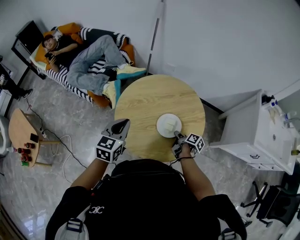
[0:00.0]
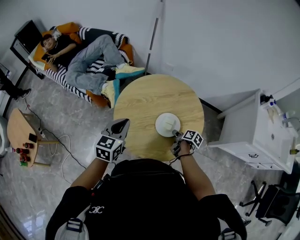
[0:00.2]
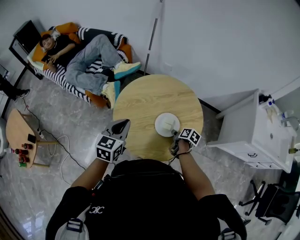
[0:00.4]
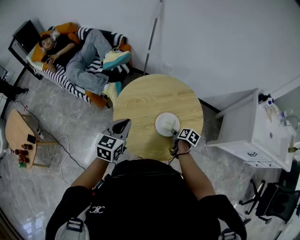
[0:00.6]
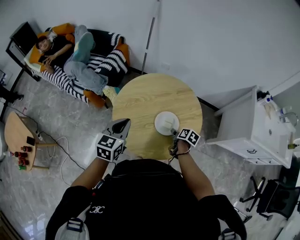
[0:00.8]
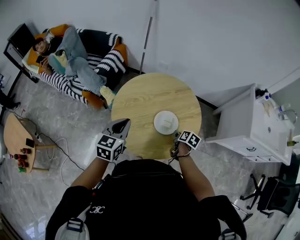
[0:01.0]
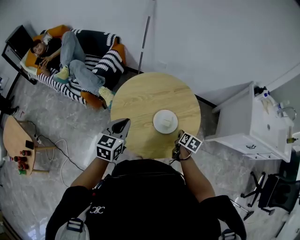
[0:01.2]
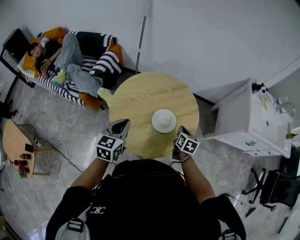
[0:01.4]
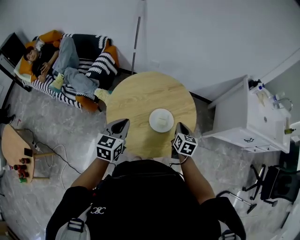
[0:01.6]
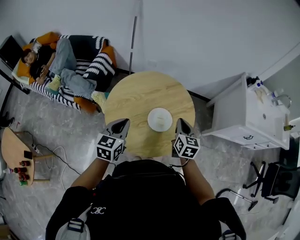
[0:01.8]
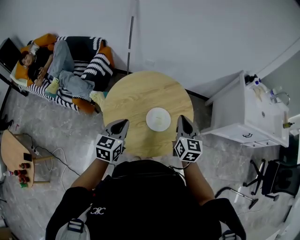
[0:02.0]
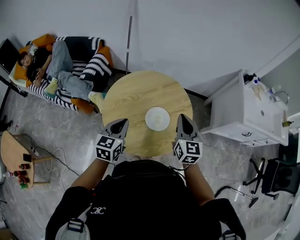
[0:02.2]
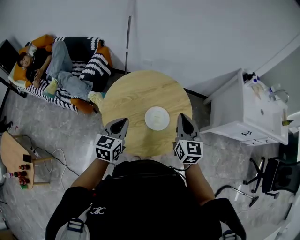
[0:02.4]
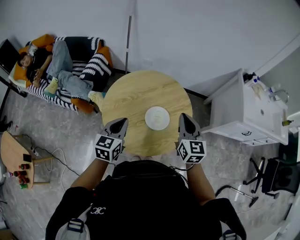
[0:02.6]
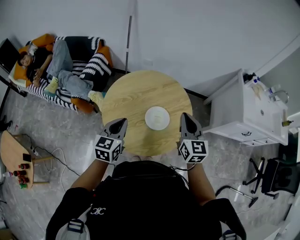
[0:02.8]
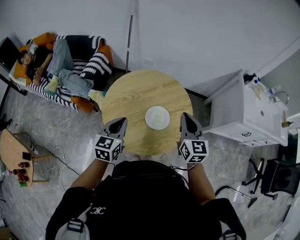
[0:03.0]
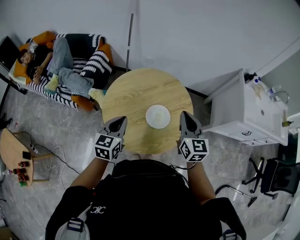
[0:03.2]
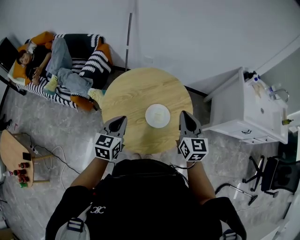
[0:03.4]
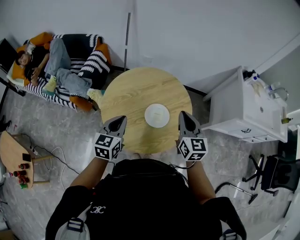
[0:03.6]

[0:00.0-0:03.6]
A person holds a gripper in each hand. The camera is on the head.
0.0 to 1.8 s: The right gripper moves upward, about 20 cm, twists about 60 degrees counterclockwise, seen from behind, and opens and closes again.
1.8 to 3.6 s: The right gripper is displaced upward by roughly 10 cm.

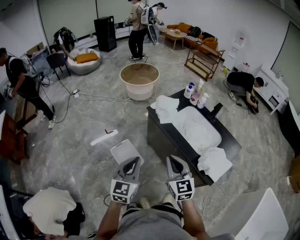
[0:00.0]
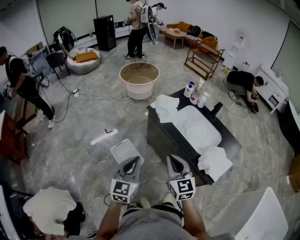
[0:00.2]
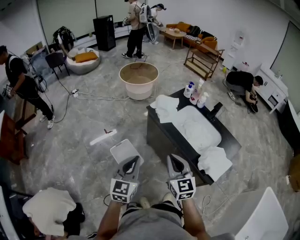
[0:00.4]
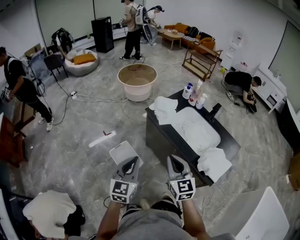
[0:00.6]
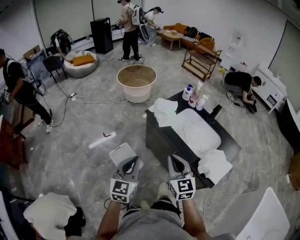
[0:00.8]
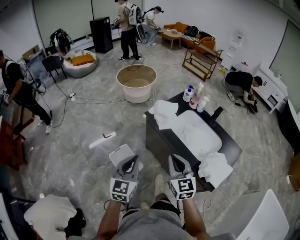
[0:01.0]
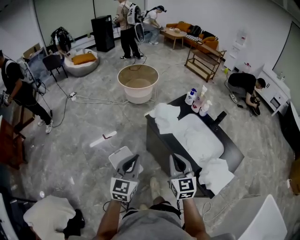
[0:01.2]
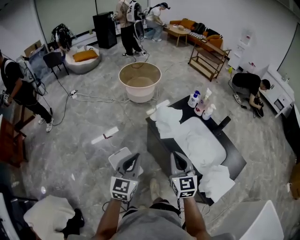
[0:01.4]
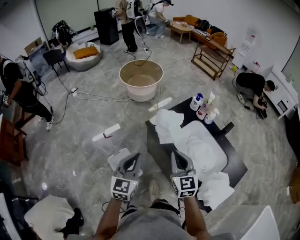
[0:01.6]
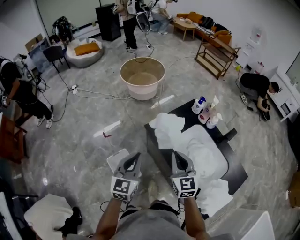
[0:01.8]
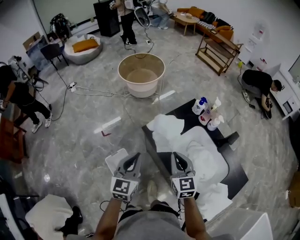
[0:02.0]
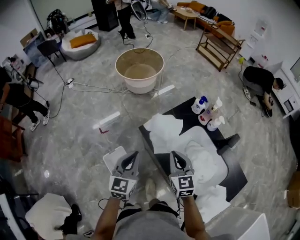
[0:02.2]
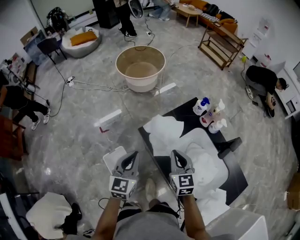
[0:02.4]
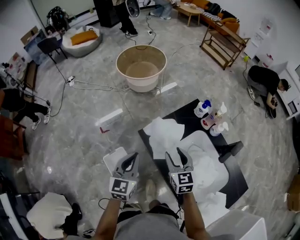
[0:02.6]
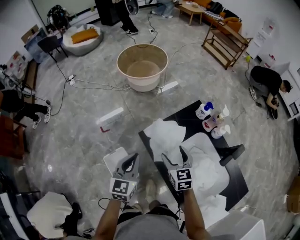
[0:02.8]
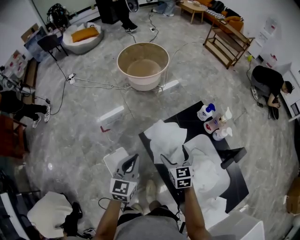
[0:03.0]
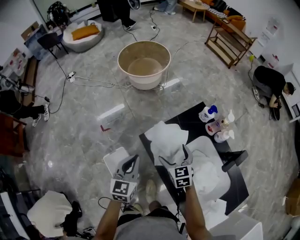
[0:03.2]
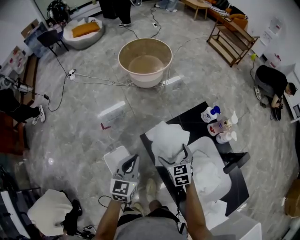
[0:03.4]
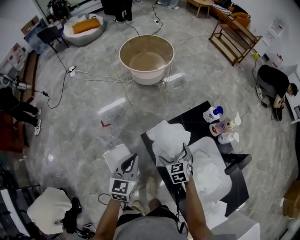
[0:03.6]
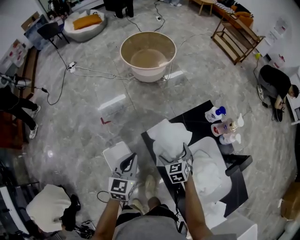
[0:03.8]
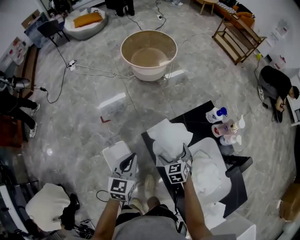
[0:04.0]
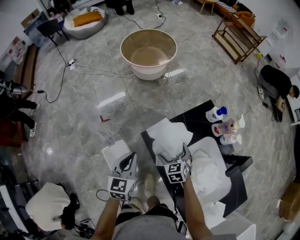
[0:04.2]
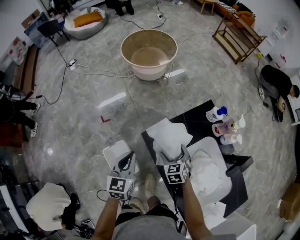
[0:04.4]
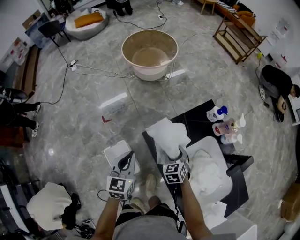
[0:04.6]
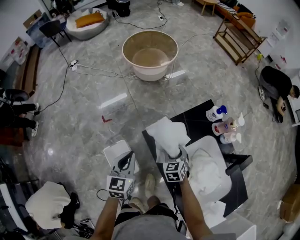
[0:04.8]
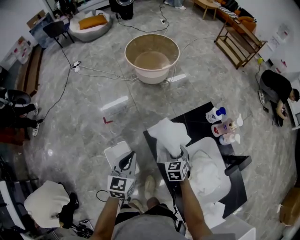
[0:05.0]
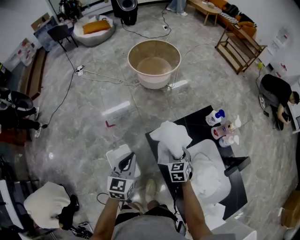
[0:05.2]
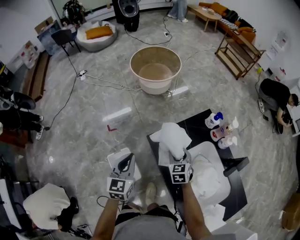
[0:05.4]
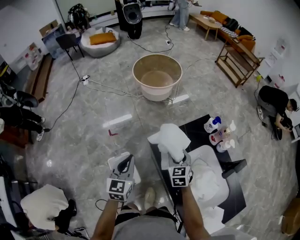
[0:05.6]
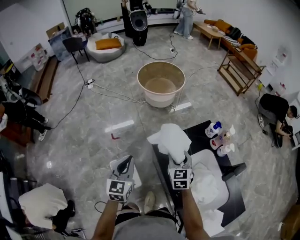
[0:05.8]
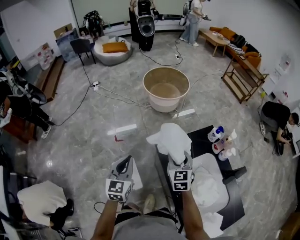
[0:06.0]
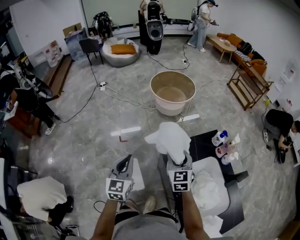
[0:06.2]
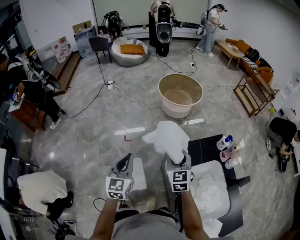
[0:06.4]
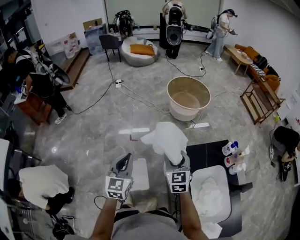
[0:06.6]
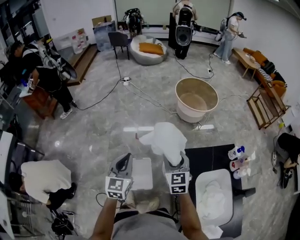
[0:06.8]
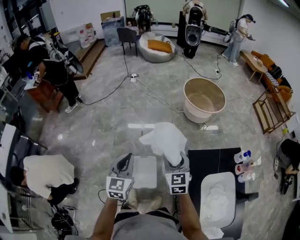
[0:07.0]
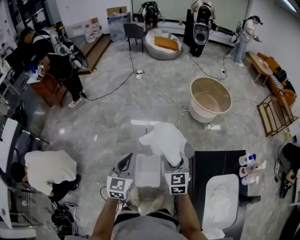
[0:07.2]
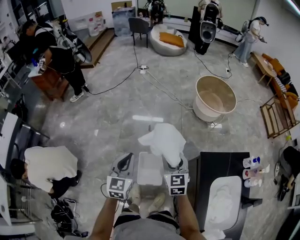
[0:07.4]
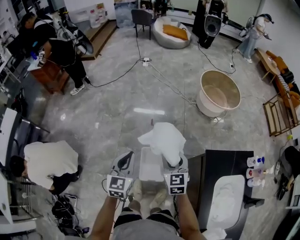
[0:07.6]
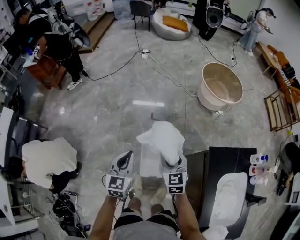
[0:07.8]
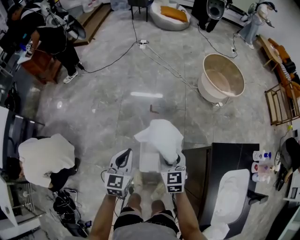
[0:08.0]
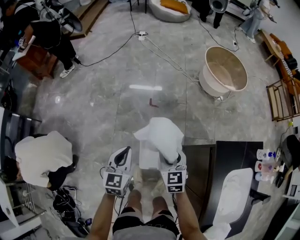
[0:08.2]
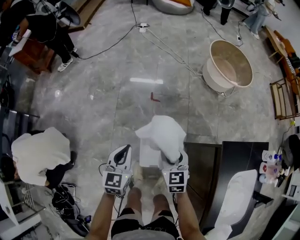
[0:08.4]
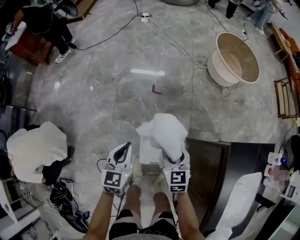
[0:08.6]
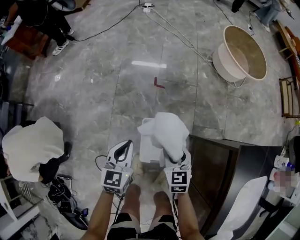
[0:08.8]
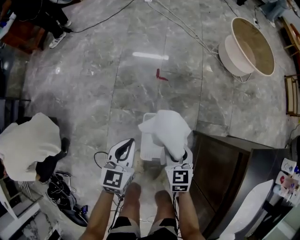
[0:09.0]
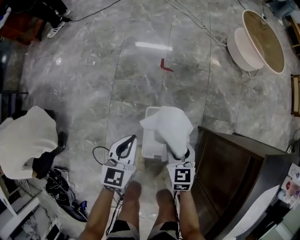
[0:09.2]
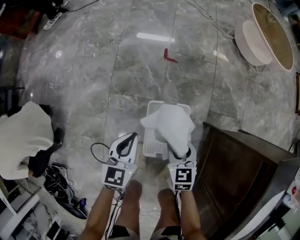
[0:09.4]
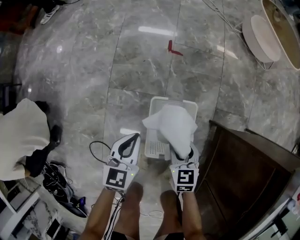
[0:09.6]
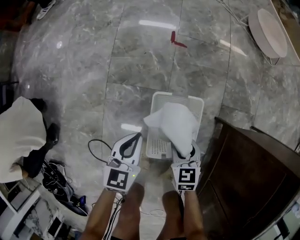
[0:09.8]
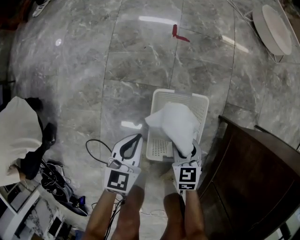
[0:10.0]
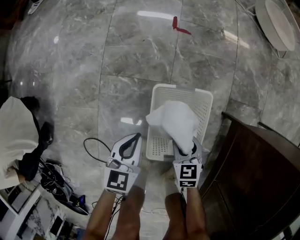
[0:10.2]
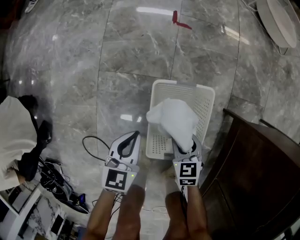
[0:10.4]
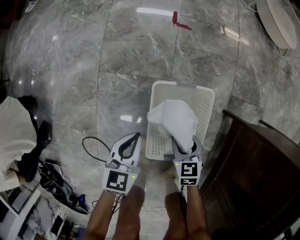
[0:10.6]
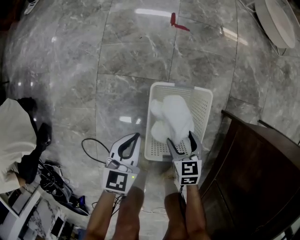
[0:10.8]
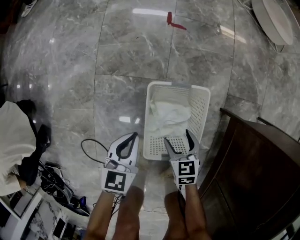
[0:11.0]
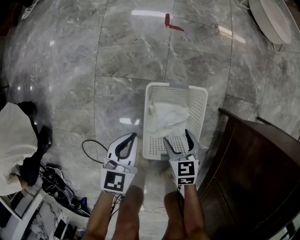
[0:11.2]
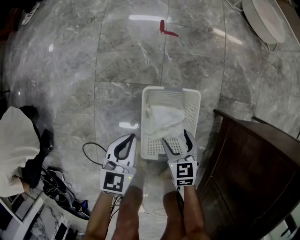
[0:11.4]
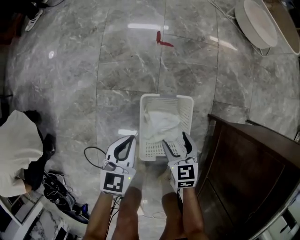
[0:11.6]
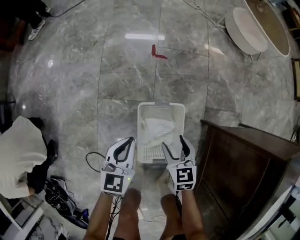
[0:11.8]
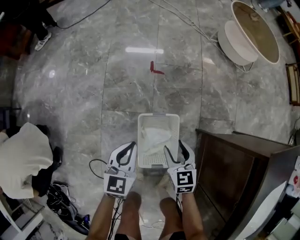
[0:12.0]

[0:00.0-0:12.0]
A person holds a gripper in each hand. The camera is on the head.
0.0 to 1.6 s: Both grippers travel together forward, about 25 cm.
1.6 to 3.0 s: Both grippers travel together forward and downward, approximately 25 cm. The right gripper turns by approximately 20 degrees, and opens.
3.0 to 4.4 s: The left gripper goes some 5 cm downward; the right gripper heads downward, covering about 10 cm.
4.4 to 6.0 s: The right gripper moves upward, some 20 cm, turns by approximately 20 degrees, and closes up; the left gripper travels upward, backward and to the left by some 15 cm.
6.0 to 7.6 s: The grippers both shift to the left by some 35 cm. The left gripper swivels approximately 20 degrees. Meanwhile the right gripper rotates some 30 degrees.
7.6 to 9.0 s: The two grippers go approximately 35 cm downward.
9.0 to 10.4 s: Both grippers travel together downward, roughly 35 cm.
10.4 to 12.0 s: Both grippers travel together upward, some 25 cm.

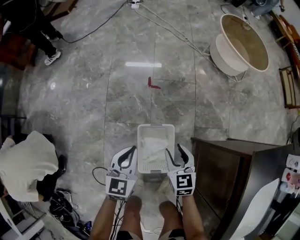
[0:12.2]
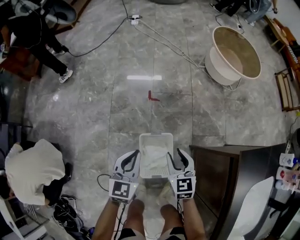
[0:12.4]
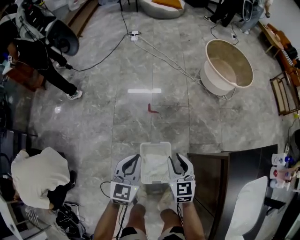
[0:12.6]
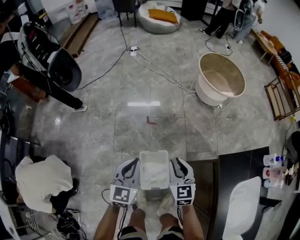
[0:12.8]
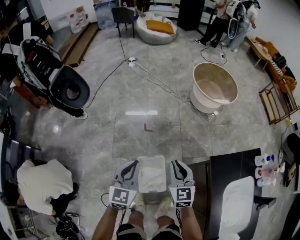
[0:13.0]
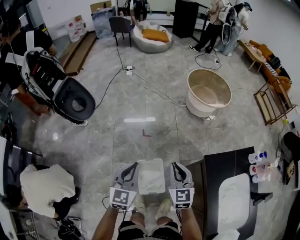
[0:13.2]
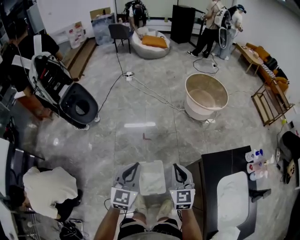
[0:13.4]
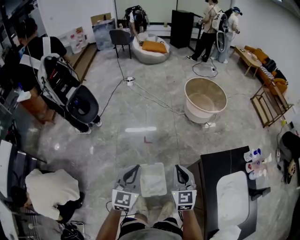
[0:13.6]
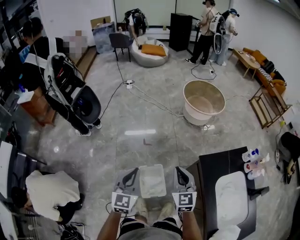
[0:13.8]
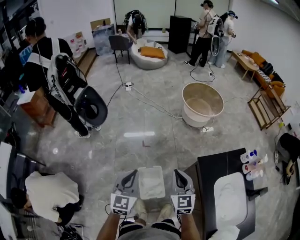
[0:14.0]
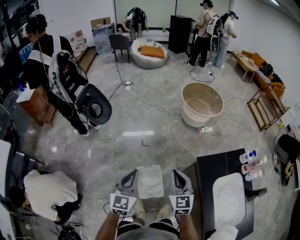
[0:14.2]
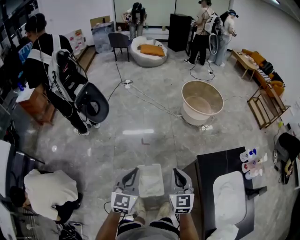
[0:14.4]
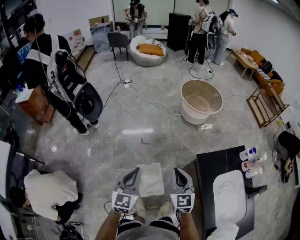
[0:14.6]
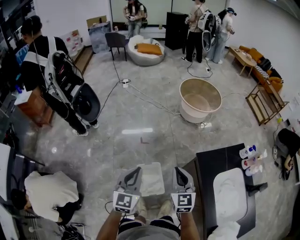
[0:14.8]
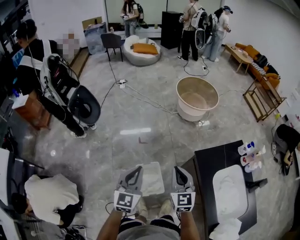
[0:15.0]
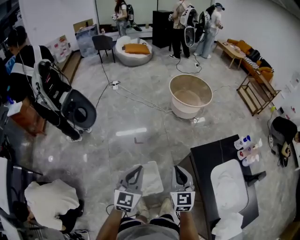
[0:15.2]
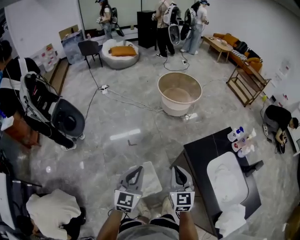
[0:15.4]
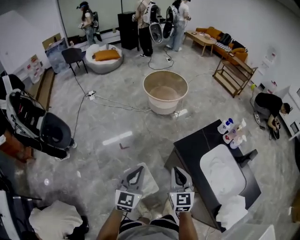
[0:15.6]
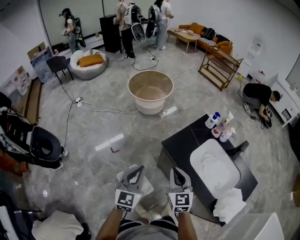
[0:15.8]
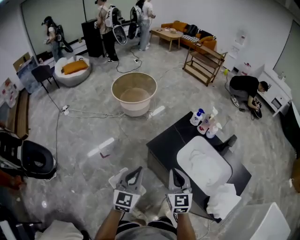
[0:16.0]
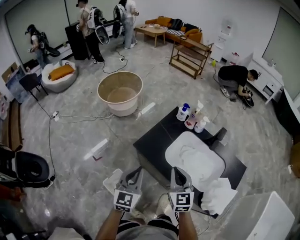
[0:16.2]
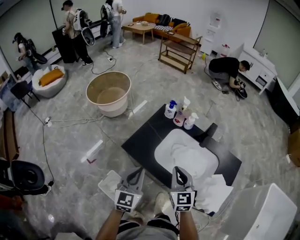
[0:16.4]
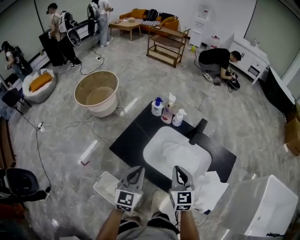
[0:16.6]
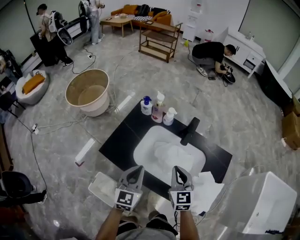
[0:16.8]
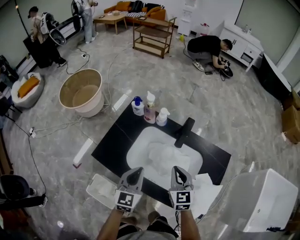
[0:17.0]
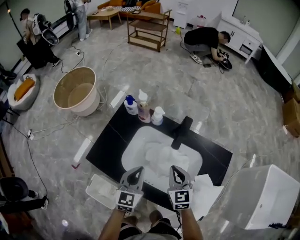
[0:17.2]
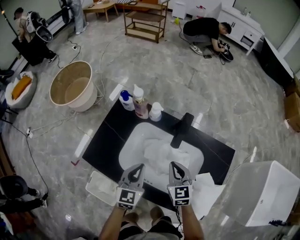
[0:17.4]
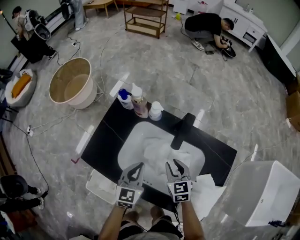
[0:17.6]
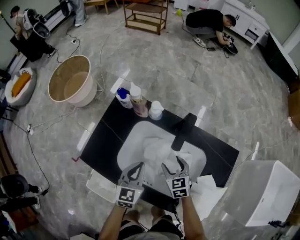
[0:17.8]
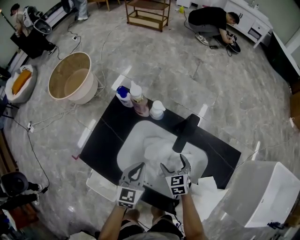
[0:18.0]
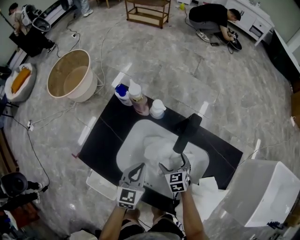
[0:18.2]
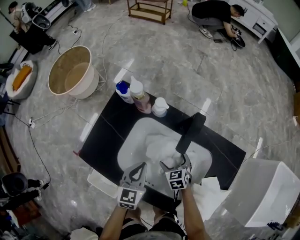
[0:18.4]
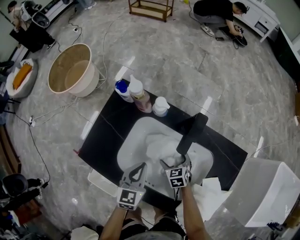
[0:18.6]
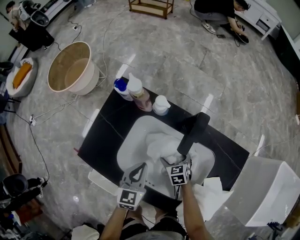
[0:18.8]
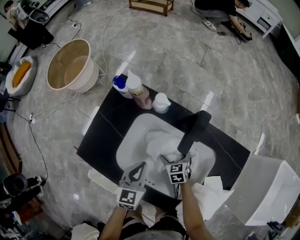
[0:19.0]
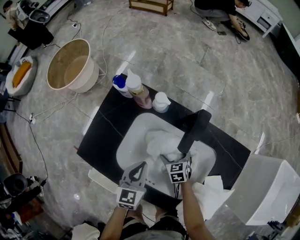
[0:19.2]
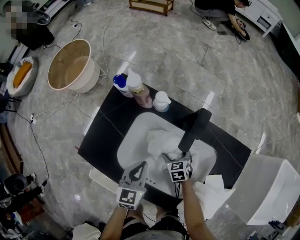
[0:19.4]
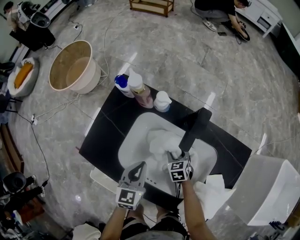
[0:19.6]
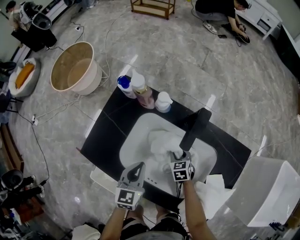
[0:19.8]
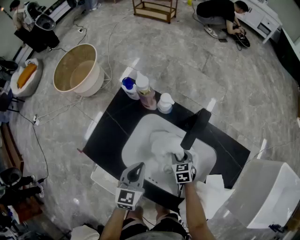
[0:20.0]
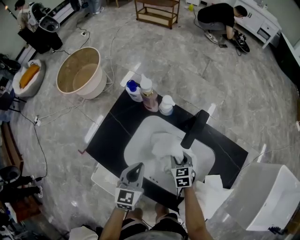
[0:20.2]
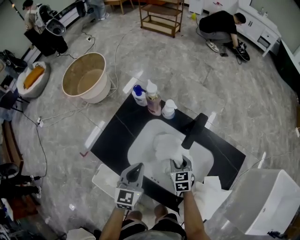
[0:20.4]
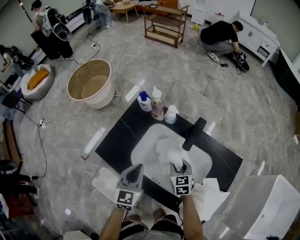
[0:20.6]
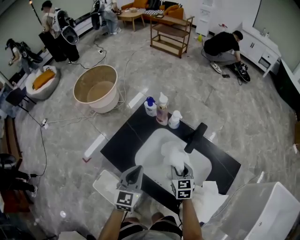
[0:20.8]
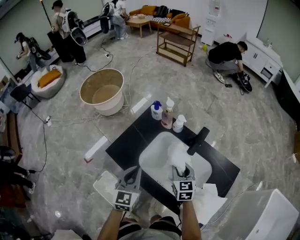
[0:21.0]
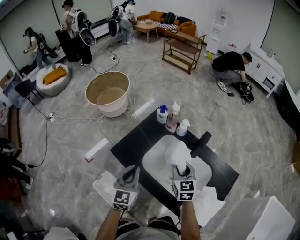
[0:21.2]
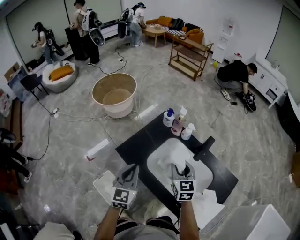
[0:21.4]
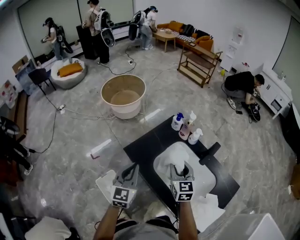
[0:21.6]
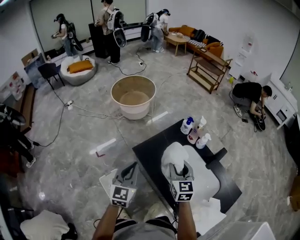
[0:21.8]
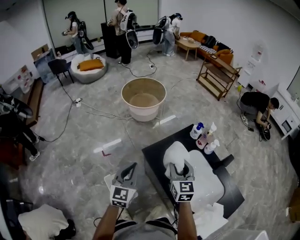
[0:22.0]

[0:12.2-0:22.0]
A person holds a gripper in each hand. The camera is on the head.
12.2 to 13.6 s: Both grippers move upward, about 40 cm. The left gripper rotates about 20 degrees. The right gripper swivels approximately 30 degrees.
13.6 to 15.0 s: There are only small adjustments of the grippers.
15.0 to 16.4 s: The right gripper ends up some 40 cm from where it was, and changes its angle by roughly 40 degrees. The left gripper changes place by approximately 40 cm, and rotates about 40 degrees.
16.4 to 17.8 s: The right gripper heads downward, to the right and forward, covering approximately 35 cm, turns by roughly 30 degrees, and opens up. The left gripper goes about 30 cm to the right, forward and downward.
17.8 to 19.2 s: The left gripper travels downward by some 5 cm. Meanwhile the right gripper moves downward, some 15 cm, and opens up.
19.2 to 20.6 s: The left gripper moves upward and to the left, roughly 15 cm. Meanwhile the right gripper heads upward, covering some 15 cm, and closes its fingers.
20.6 to 22.0 s: Both grippers move to the left and upward, roughly 35 cm. The left gripper changes its angle by roughly 30 degrees. The right gripper rotates some 30 degrees.
